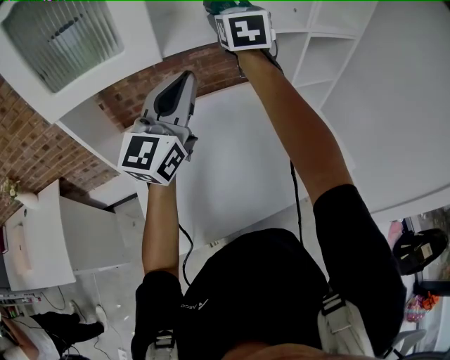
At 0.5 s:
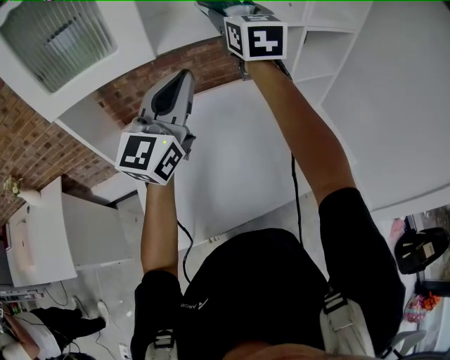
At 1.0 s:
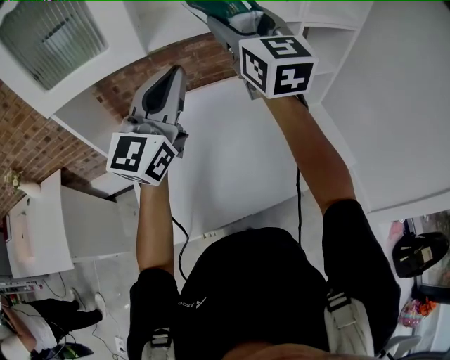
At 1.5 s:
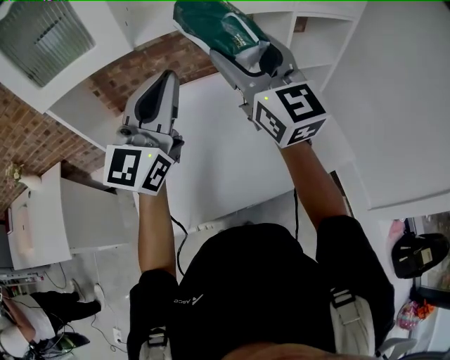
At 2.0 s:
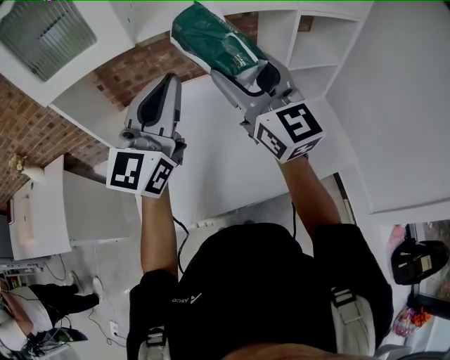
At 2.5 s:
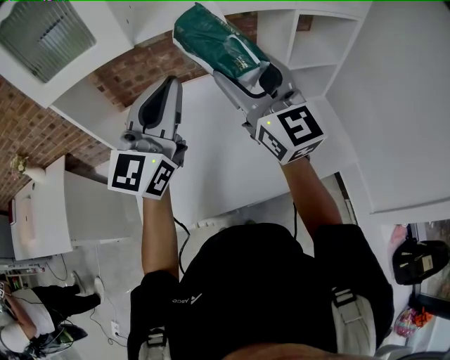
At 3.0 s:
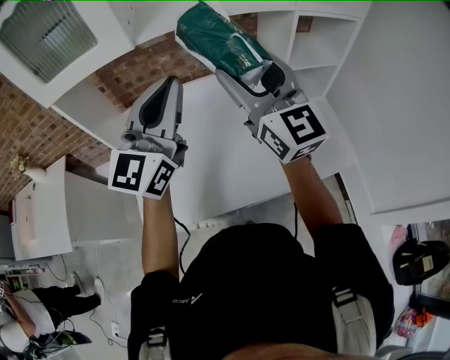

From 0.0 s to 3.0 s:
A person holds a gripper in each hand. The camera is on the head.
From 0.0 s to 1.5 s: The left gripper heads to the right, covering about 5 cm, while the right gripper is displaced backward and to the right by about 20 cm, and turns by approximately 30 degrees.
From 1.5 s to 3.0 s: The grippers stay close to where they were, moving slightly.

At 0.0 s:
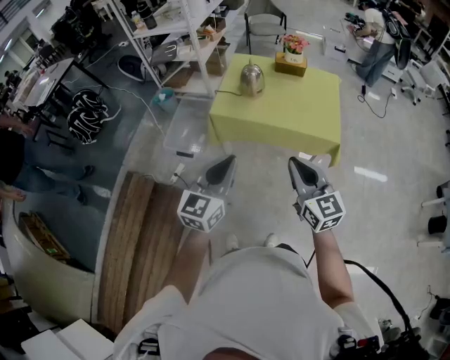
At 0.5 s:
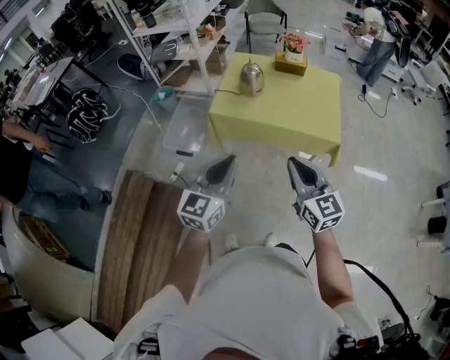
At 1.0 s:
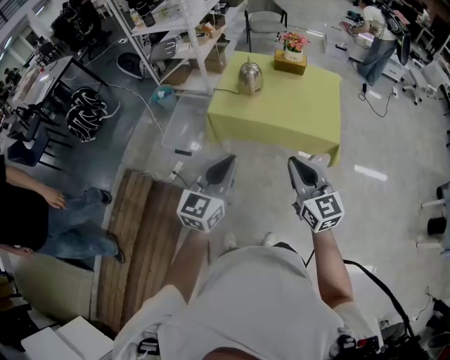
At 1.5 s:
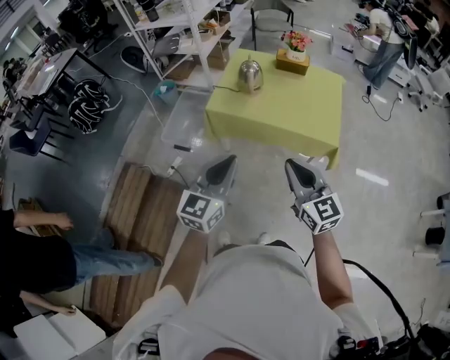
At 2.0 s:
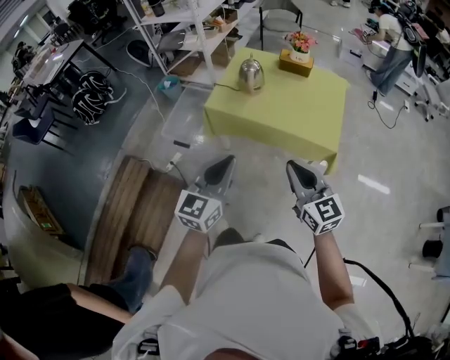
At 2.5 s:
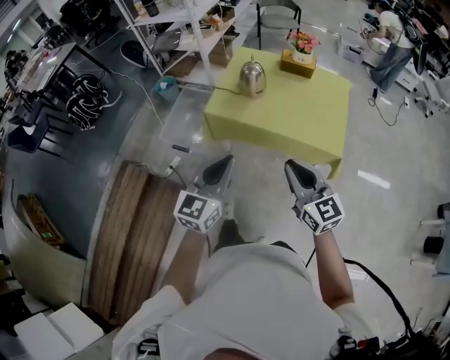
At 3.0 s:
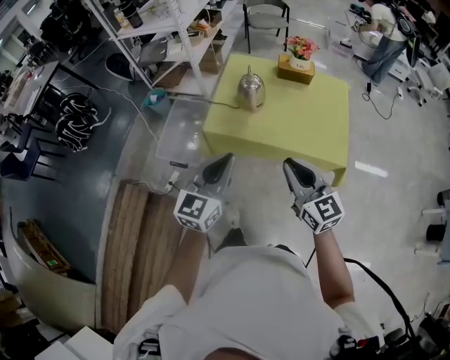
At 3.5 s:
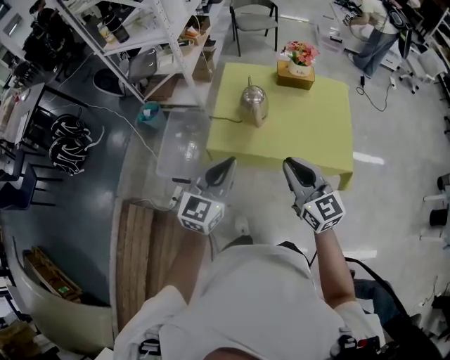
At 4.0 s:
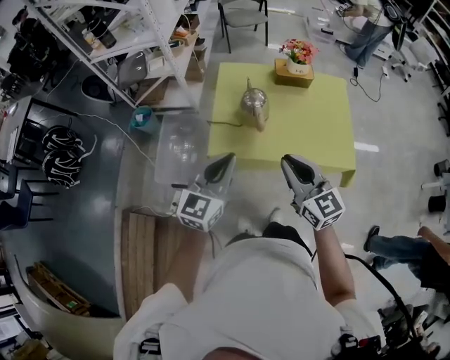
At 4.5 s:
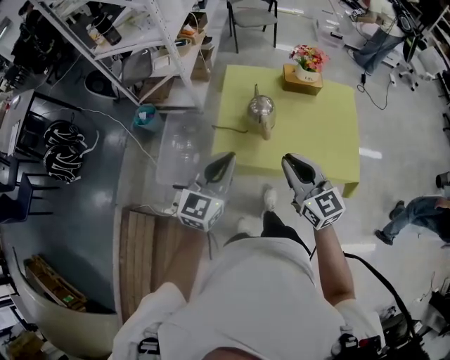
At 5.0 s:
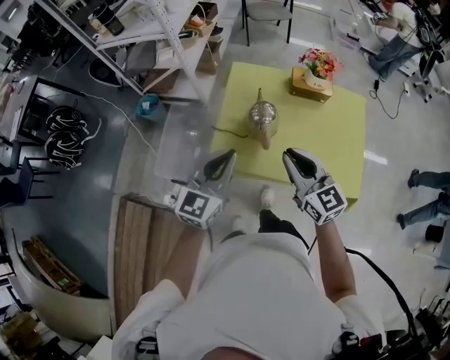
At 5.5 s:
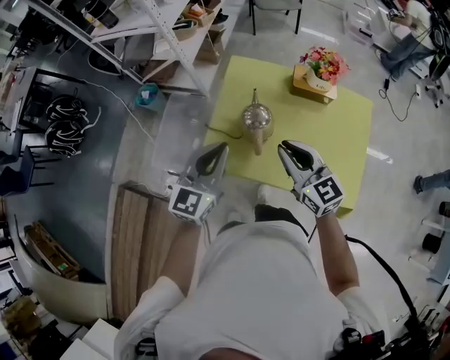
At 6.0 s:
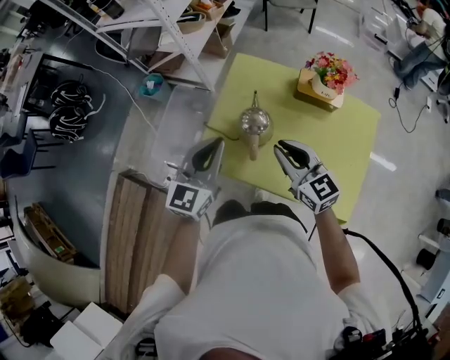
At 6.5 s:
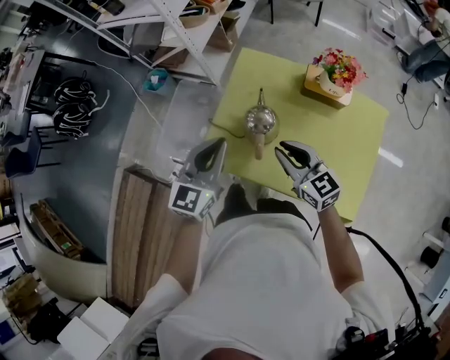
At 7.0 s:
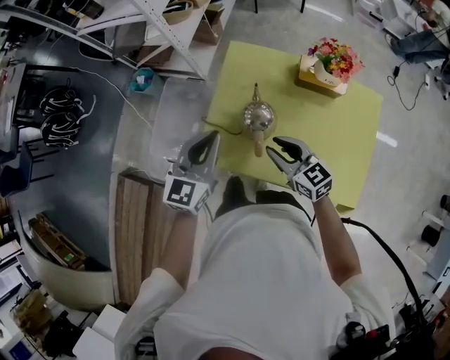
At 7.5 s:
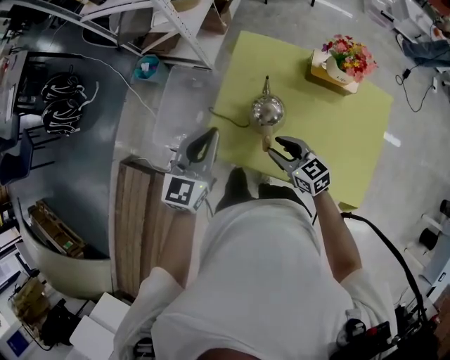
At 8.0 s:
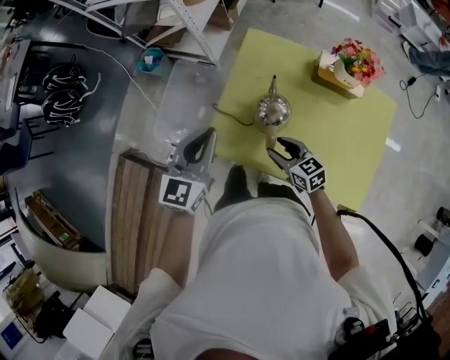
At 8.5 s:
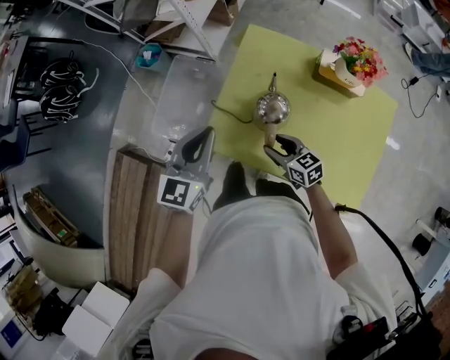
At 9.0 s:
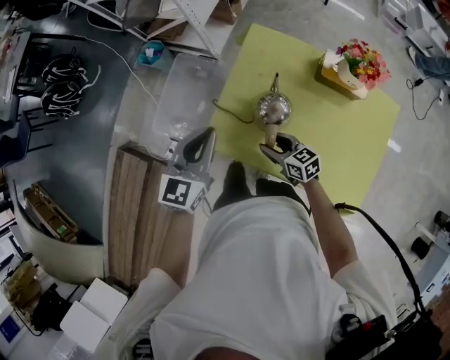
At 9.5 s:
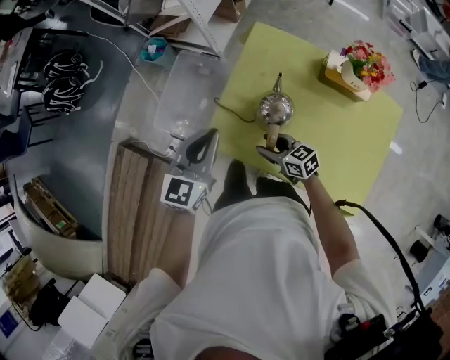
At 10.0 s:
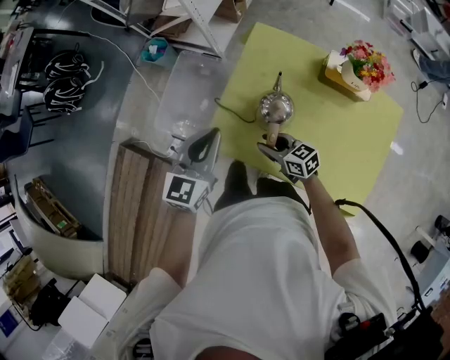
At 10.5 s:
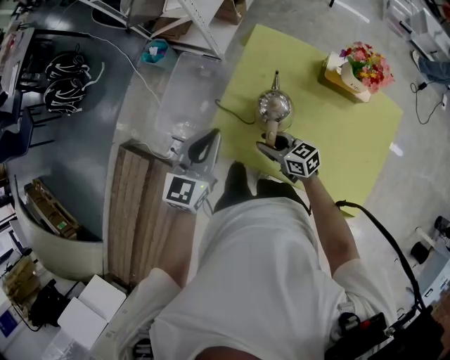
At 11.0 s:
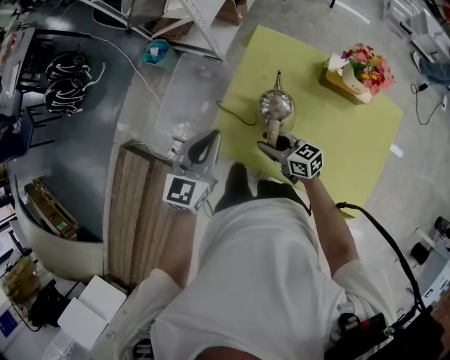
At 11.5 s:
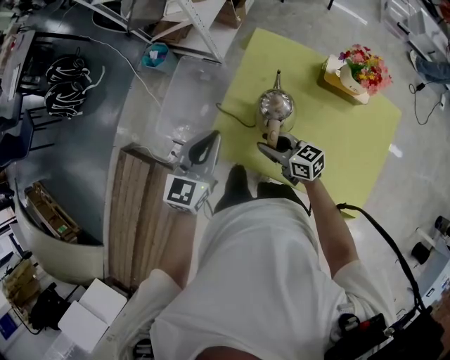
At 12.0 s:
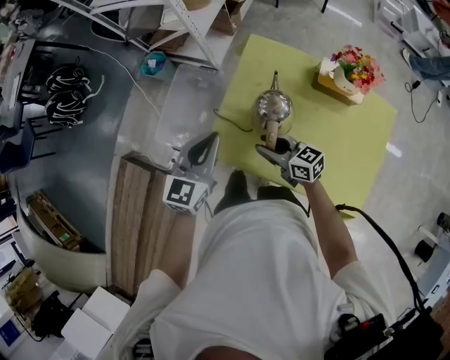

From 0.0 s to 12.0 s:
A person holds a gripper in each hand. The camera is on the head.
From 0.0 s to 2.0 s: The grippers both shift to the right by some 10 cm.
From 2.0 s to 4.0 s: The two grippers go approximately 35 cm forward and to the left.
From 4.0 s to 6.0 s: Both grippers travel together forward, roughly 25 cm. The right gripper turns by approximately 20 degrees.
From 6.0 s to 8.0 s: The right gripper travels downward by some 20 cm, changes its angle by some 20 degrees, and opens, while the left gripper heads to the left, covering roughly 5 cm.
From 8.0 s to 10.0 s: The right gripper moves roughly 5 cm.
From 10.0 s to 12.0 s: The right gripper is displaced upward by about 5 cm.

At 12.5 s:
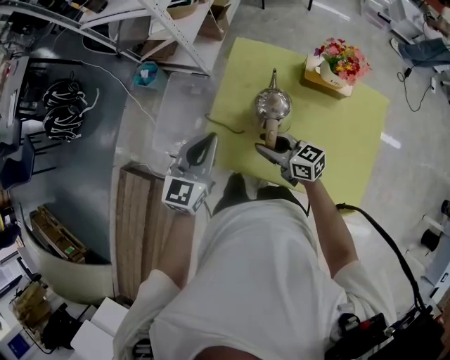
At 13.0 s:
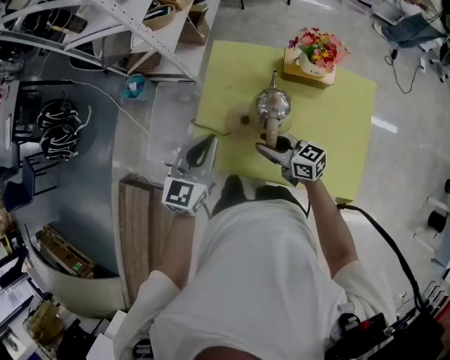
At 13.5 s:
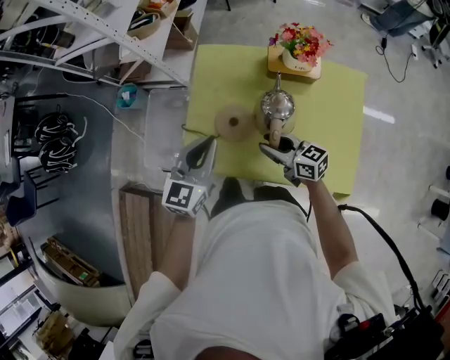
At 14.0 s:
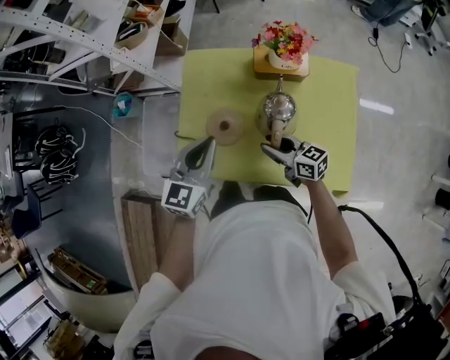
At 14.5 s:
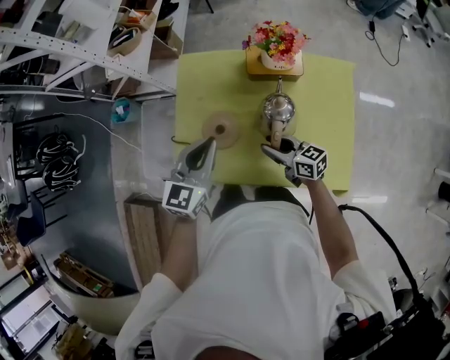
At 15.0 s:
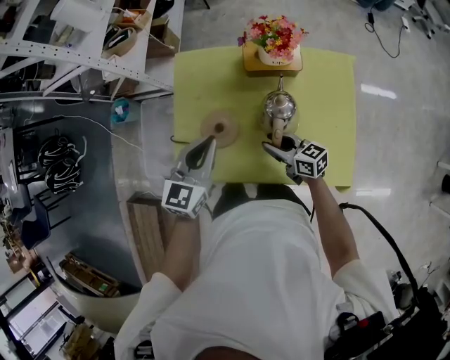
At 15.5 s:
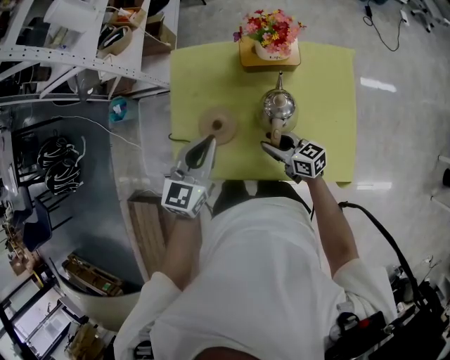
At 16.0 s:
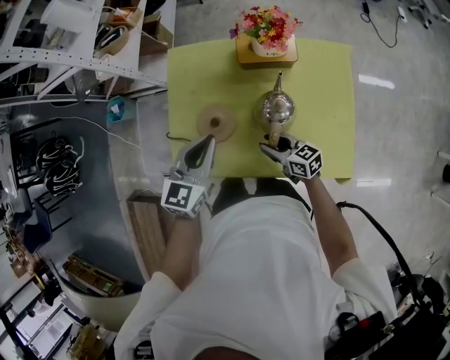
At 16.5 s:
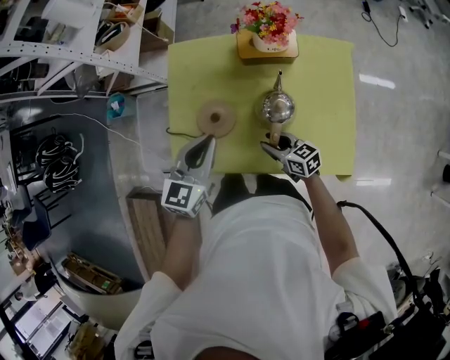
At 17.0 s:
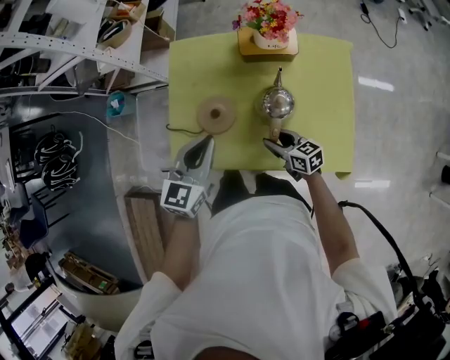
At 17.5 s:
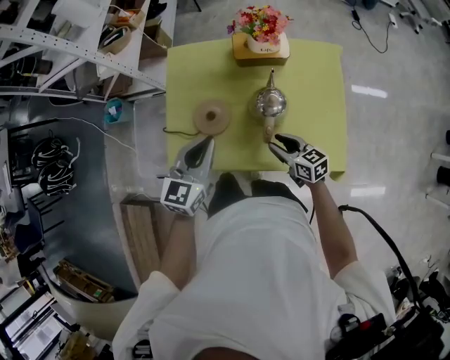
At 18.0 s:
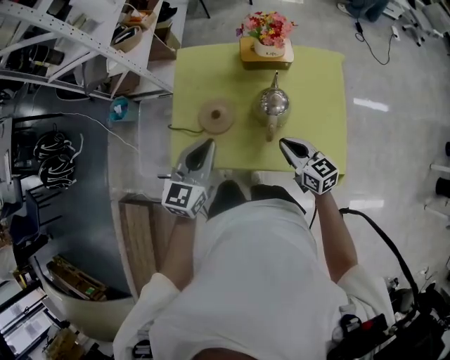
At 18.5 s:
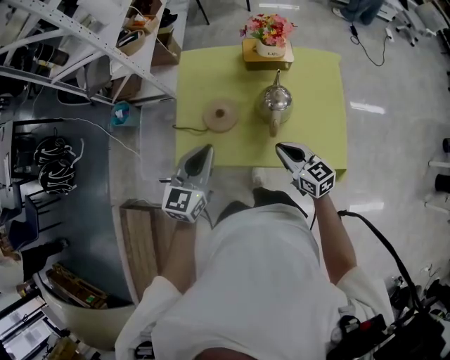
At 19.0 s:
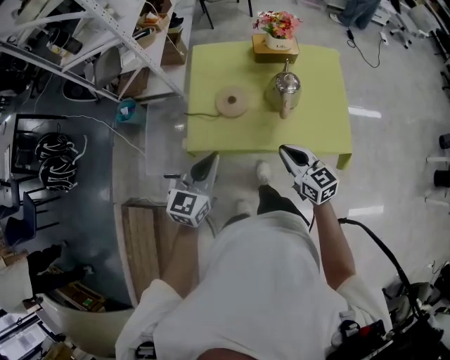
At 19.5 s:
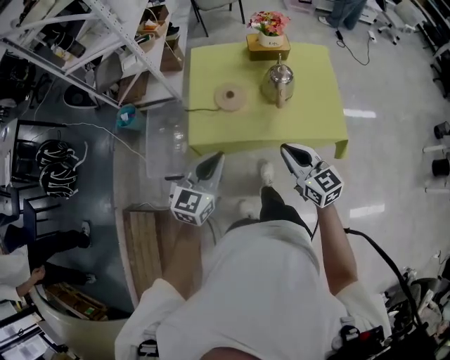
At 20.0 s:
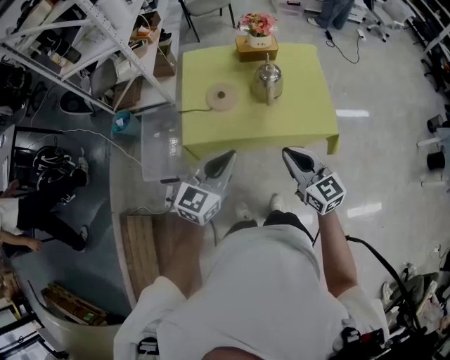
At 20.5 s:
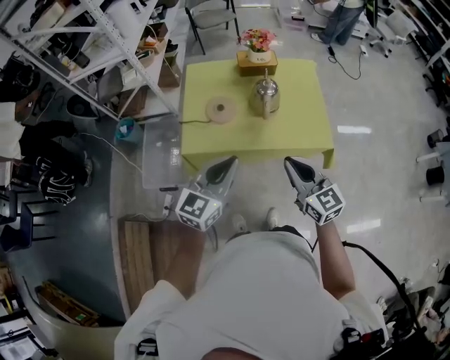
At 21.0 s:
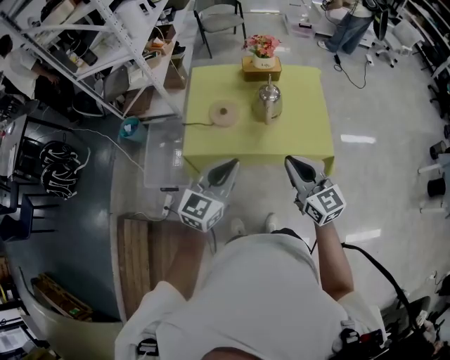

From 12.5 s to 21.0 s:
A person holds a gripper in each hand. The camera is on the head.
From 12.5 s to 14.5 s: The two grippers go about 15 cm to the right.
From 14.5 s to 16.5 s: The right gripper moves downward, approximately 5 cm.
From 16.5 s to 19.0 s: The left gripper shifts roughly 25 cm backward and to the left; the right gripper travels backward and upward by some 25 cm, rotates approximately 20 degrees, and closes up.
From 19.0 s to 21.0 s: The left gripper travels backward, to the right and upward by about 20 cm; the right gripper moves upward, backward and to the right, some 20 cm.

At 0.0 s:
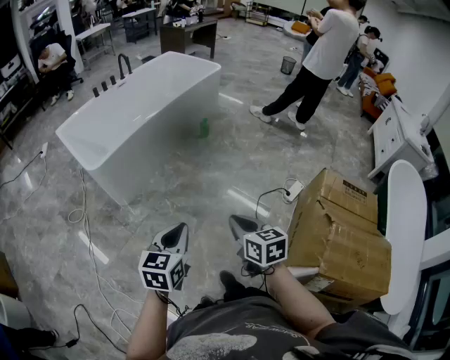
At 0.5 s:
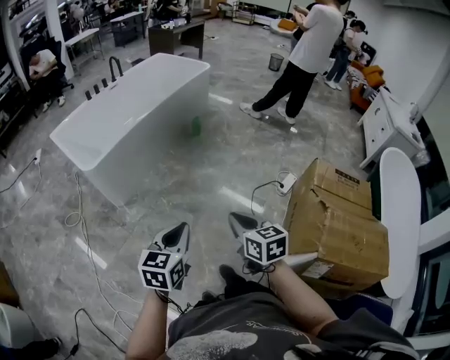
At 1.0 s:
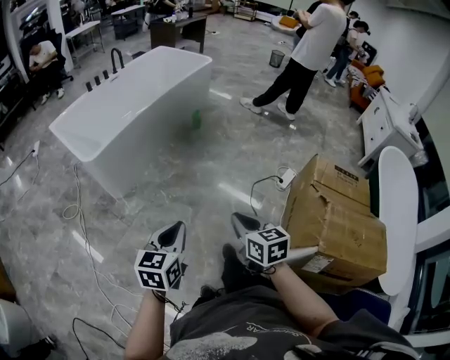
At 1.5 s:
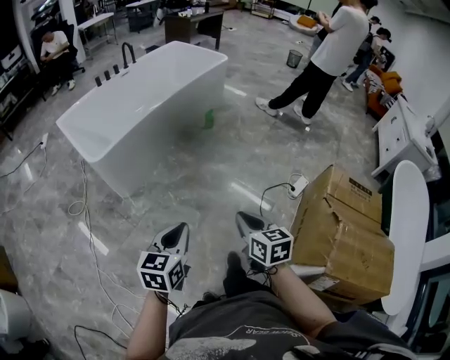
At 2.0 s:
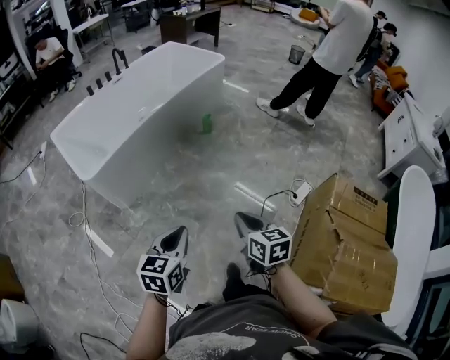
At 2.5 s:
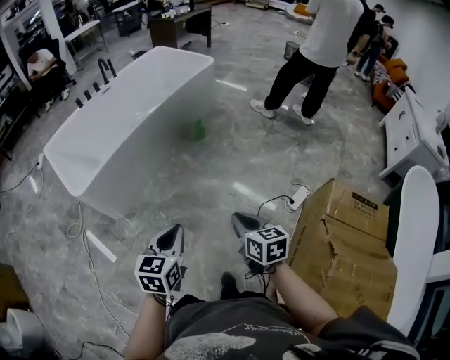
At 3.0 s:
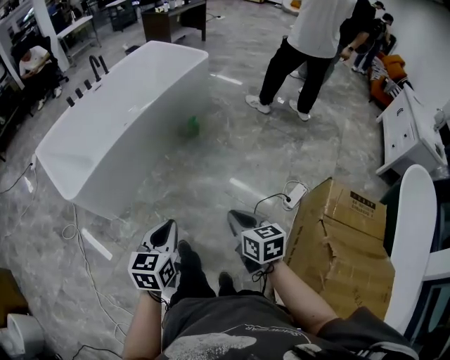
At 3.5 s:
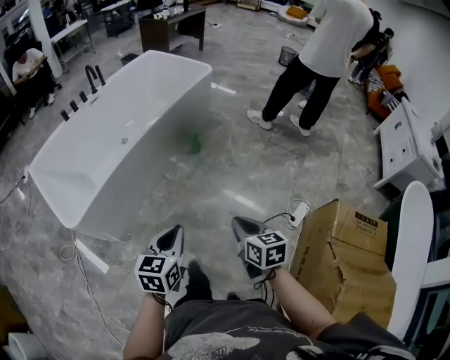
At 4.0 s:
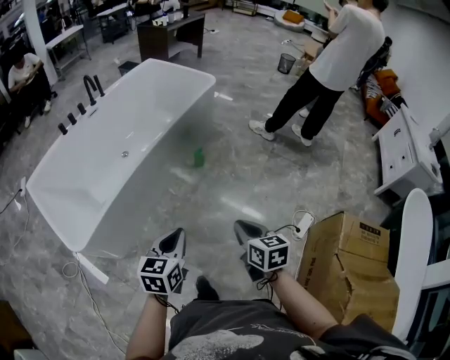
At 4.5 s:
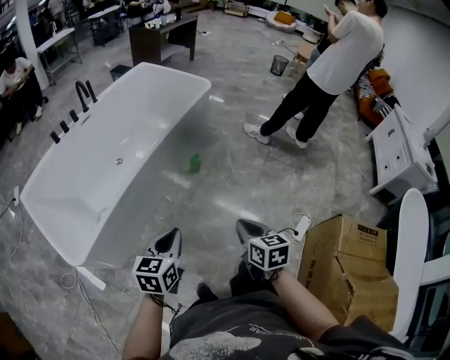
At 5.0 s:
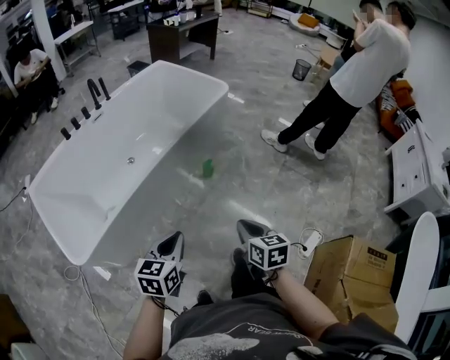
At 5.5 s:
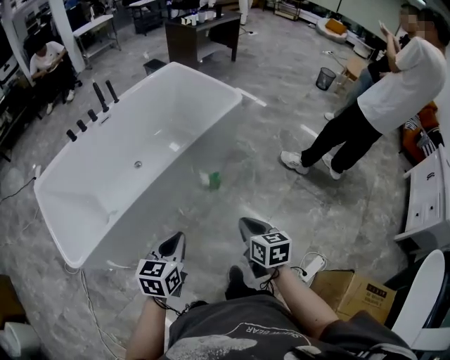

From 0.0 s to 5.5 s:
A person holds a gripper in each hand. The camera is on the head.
From 0.0 s to 2.0 s: Both grippers travel together forward, some 10 cm.
From 2.0 s to 3.5 s: The two grippers go roughly 25 cm forward.
From 3.5 s to 5.5 s: The grippers both shift forward by roughly 35 cm.
